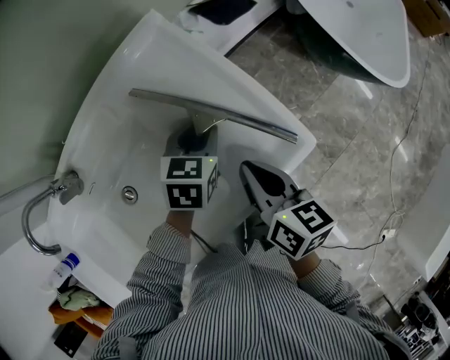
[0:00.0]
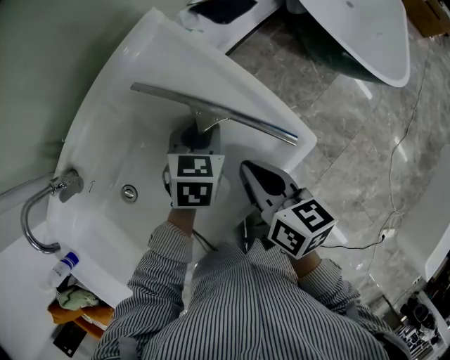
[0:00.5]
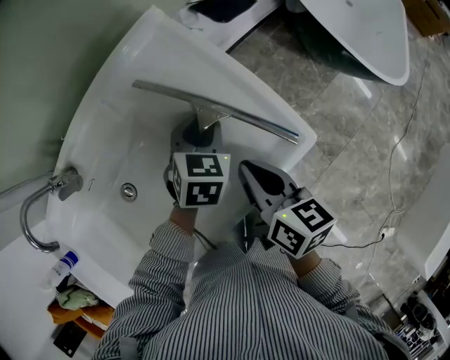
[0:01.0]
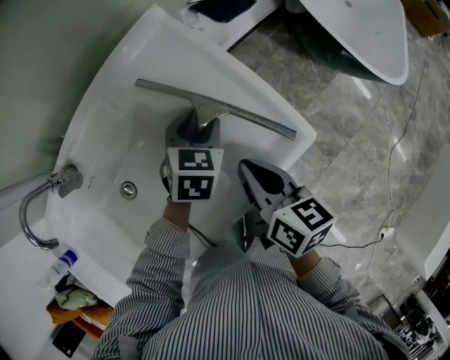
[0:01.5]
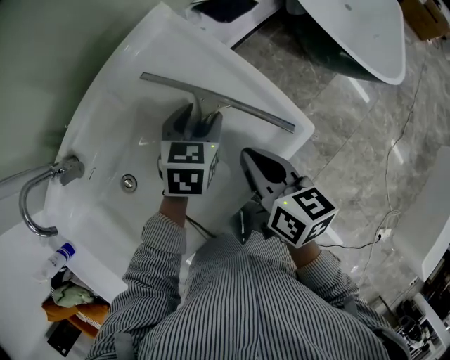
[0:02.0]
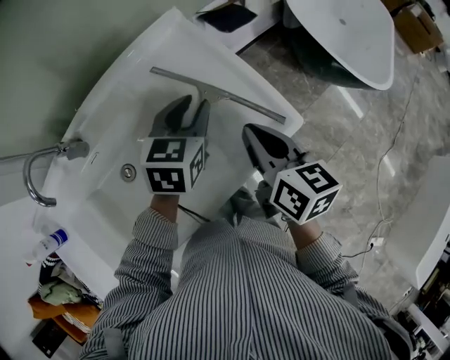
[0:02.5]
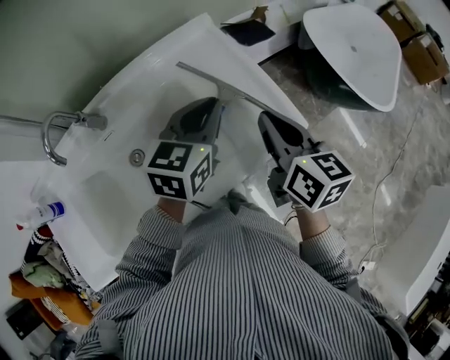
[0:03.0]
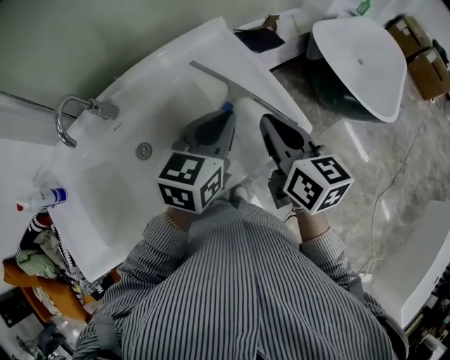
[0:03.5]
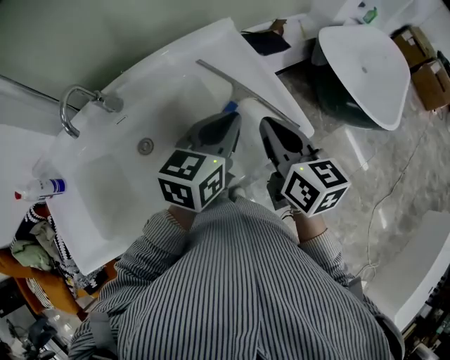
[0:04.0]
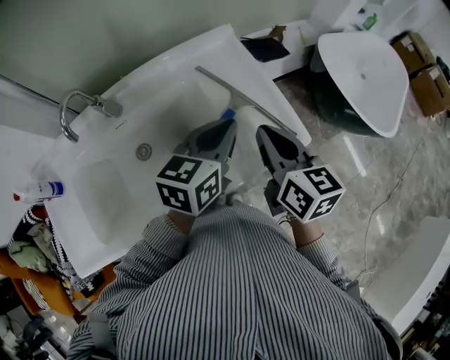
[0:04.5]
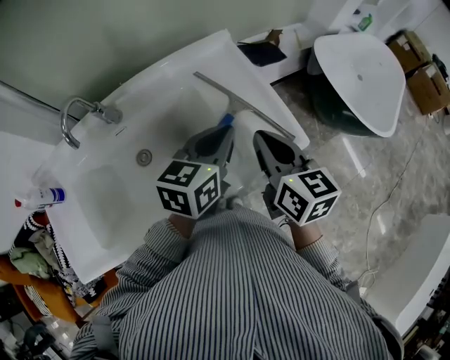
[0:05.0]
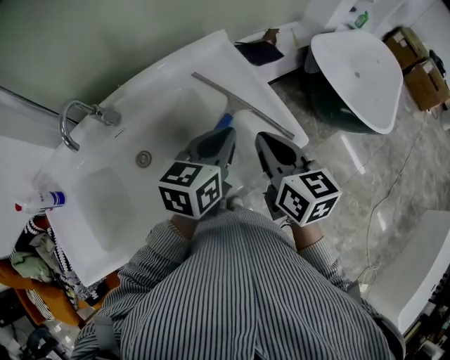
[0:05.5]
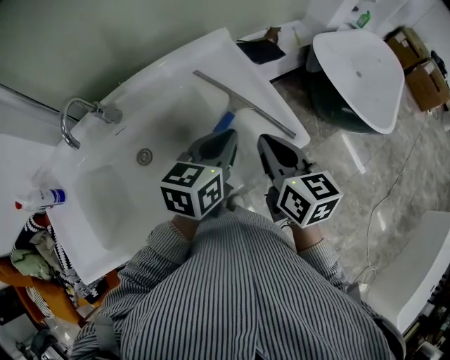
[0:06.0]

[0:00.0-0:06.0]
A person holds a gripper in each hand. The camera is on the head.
0:00.0 to 0:02.0: The left gripper opens.
0:02.0 to 0:04.0: The left gripper moves upward and backward, some 20 cm, turns by roughly 30 degrees, and closes its fingers, while the right gripper travels upward by some 10 cm, and turns by roughly 20 degrees.
0:04.0 to 0:06.0: The grippers make only small movements.

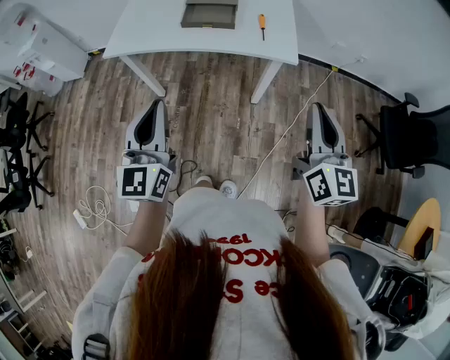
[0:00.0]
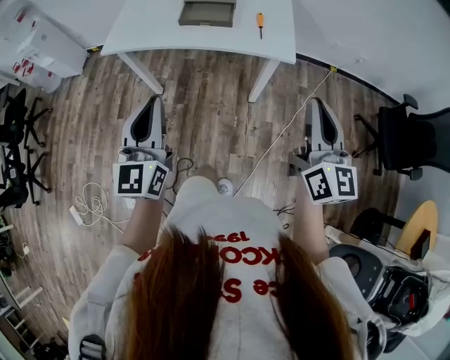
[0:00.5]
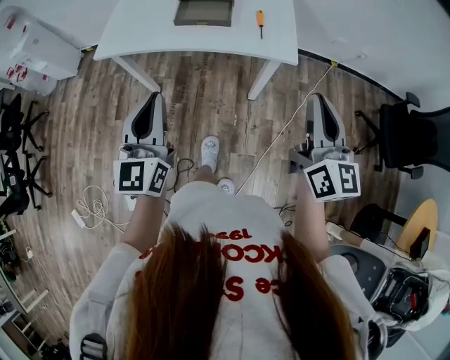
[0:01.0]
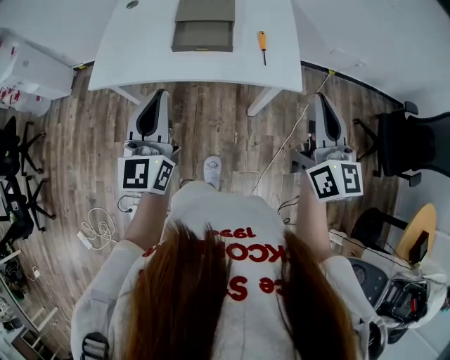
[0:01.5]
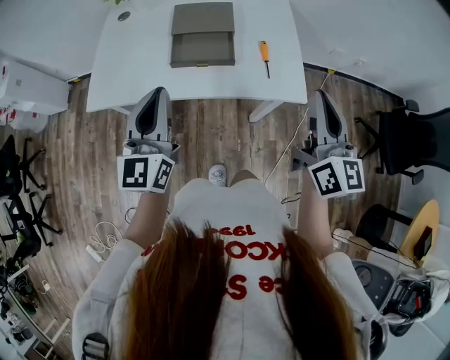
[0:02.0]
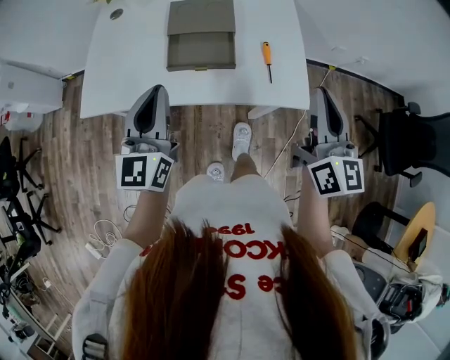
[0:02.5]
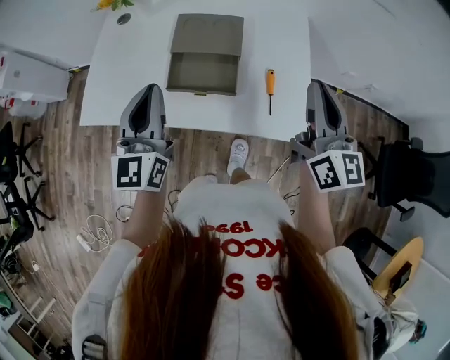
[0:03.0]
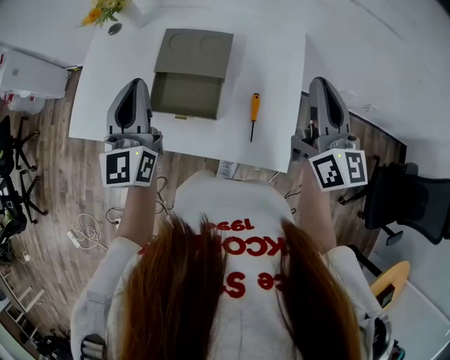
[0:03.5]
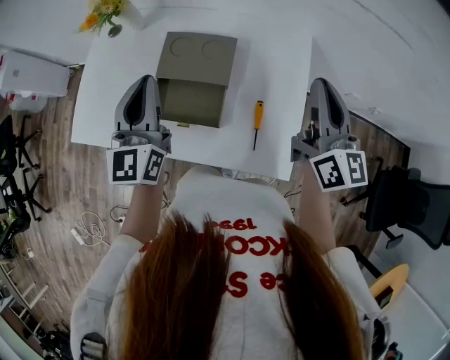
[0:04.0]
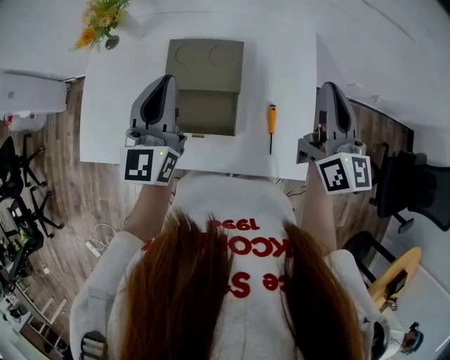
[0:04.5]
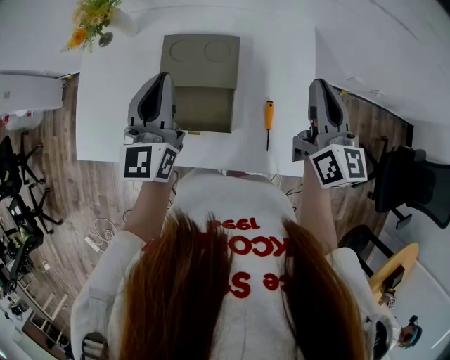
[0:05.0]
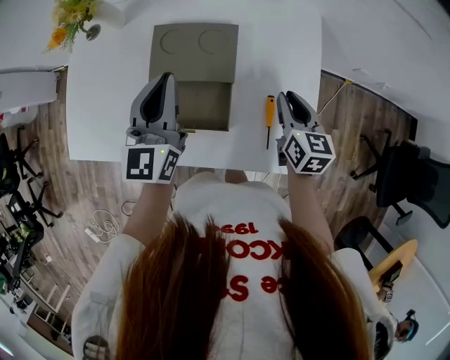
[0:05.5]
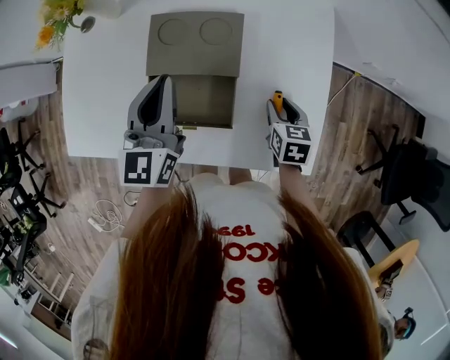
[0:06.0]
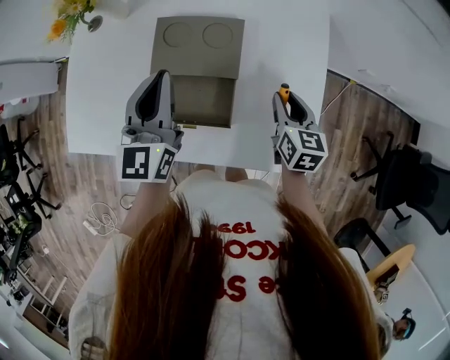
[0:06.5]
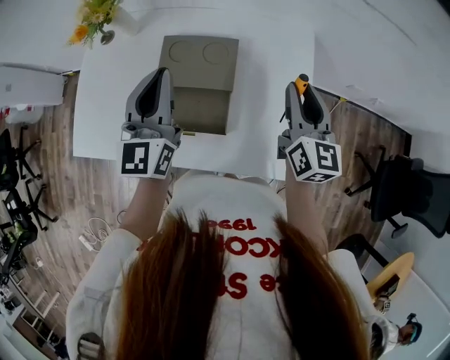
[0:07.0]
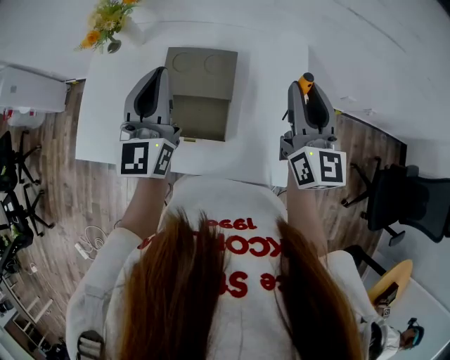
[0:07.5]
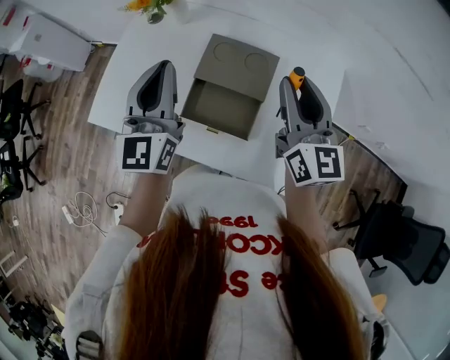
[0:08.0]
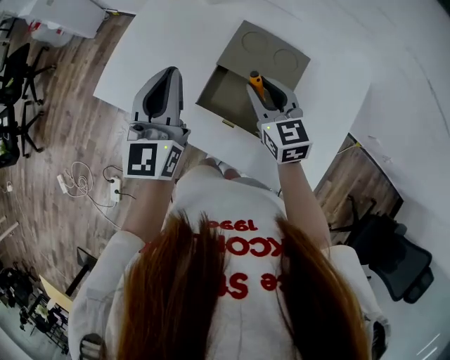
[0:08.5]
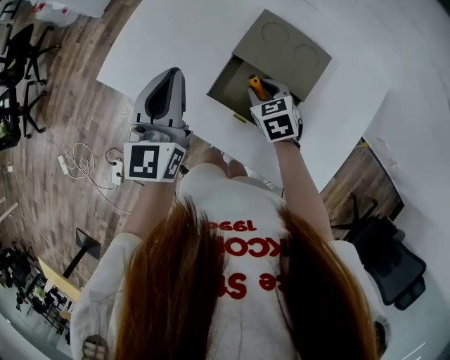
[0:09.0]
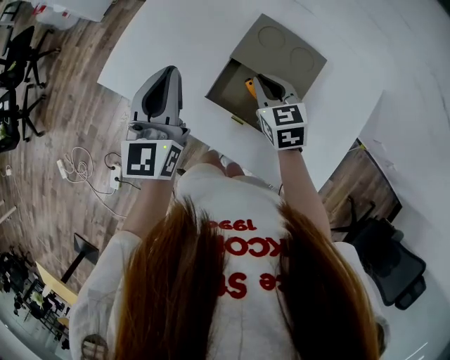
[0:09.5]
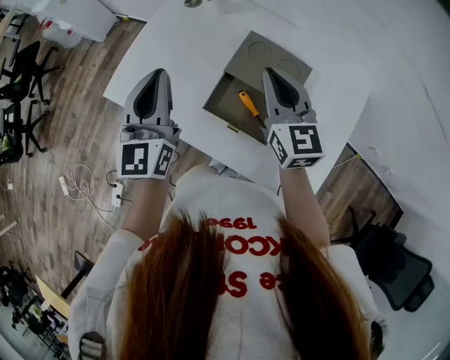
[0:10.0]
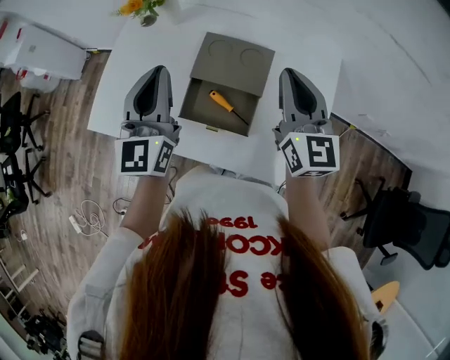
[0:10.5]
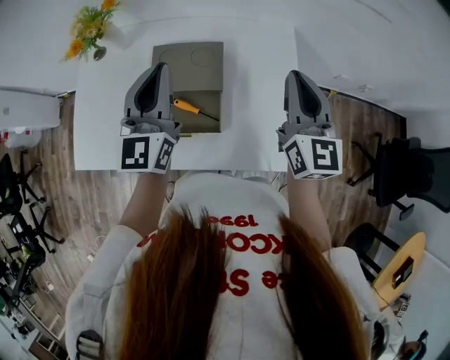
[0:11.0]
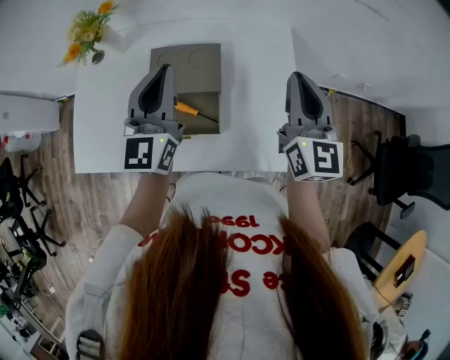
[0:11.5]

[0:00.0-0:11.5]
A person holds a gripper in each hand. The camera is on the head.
0:00.0 to 0:02.0: Both grippers travel together forward, about 25 cm.
0:02.0 to 0:04.0: Both grippers travel together forward, approximately 25 cm.
0:04.0 to 0:06.0: The left gripper is displaced downward by roughly 10 cm. The right gripper shifts about 30 cm downward, points its fingers about 50 degrees further downward, and opens its fingers.
0:06.0 to 0:07.5: The right gripper is displaced upward by about 30 cm, and tips its fingers upward by about 50 degrees. Meanwhile the left gripper travels upward by roughly 10 cm.
0:07.5 to 0:09.5: The left gripper shifts by roughly 15 cm, and turns by about 30 degrees. Meanwhile the right gripper changes place by about 35 cm, tilts its fingers about 40 degrees downward, and closes.
0:09.5 to 0:11.5: The right gripper shifts by approximately 35 cm, and tips its fingers upward by roughly 30 degrees; the left gripper moves some 20 cm, and changes its angle by roughly 30 degrees.

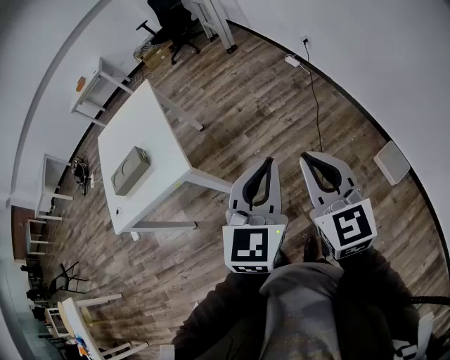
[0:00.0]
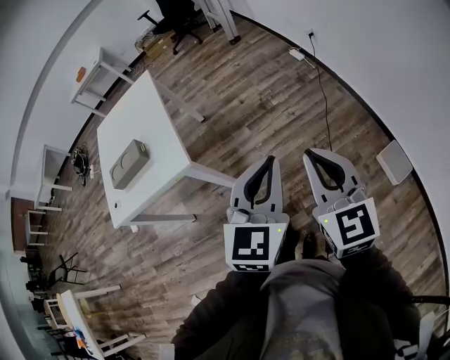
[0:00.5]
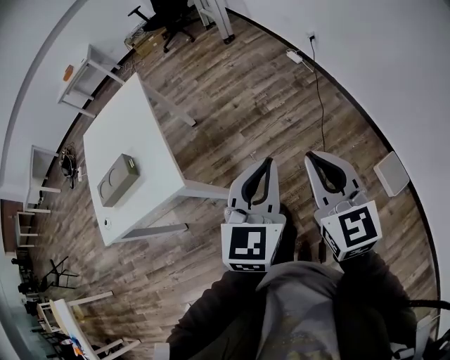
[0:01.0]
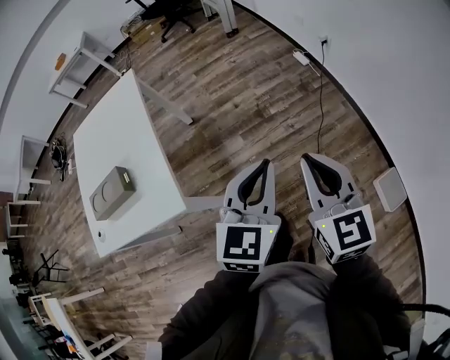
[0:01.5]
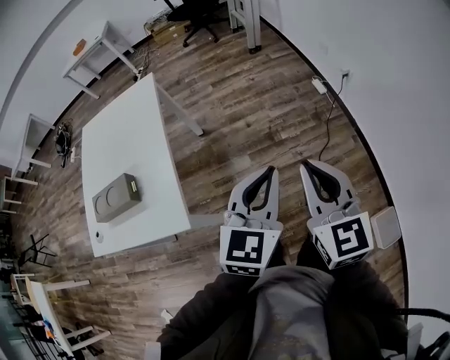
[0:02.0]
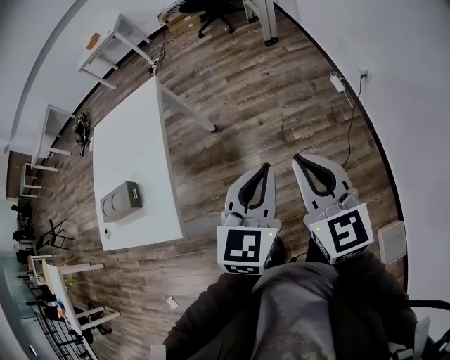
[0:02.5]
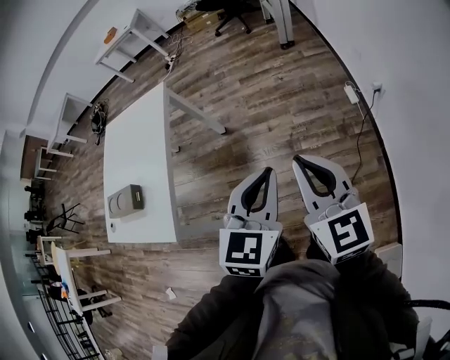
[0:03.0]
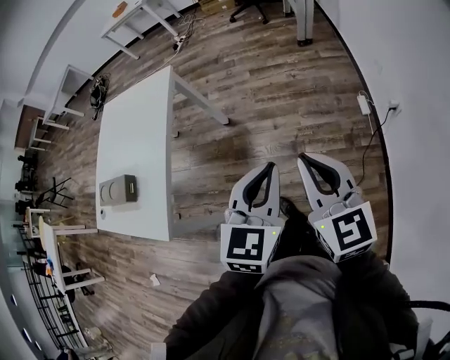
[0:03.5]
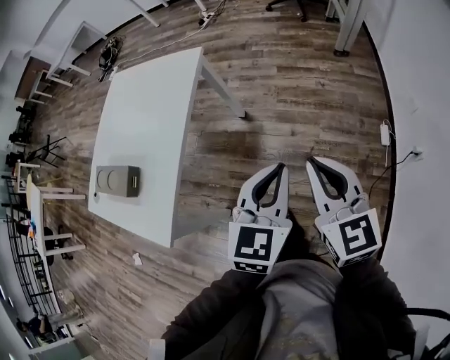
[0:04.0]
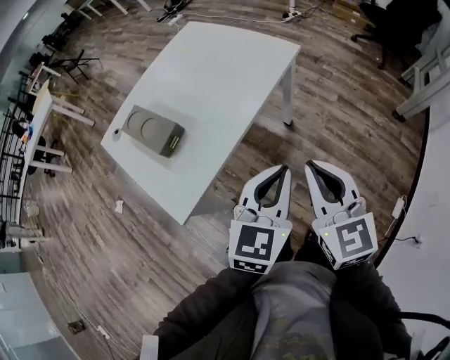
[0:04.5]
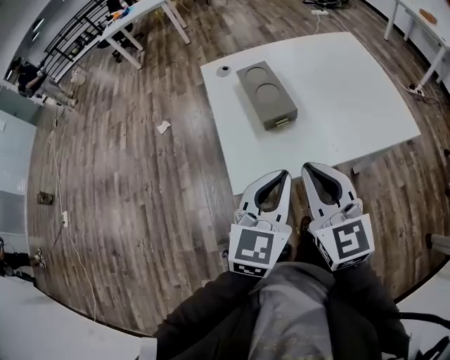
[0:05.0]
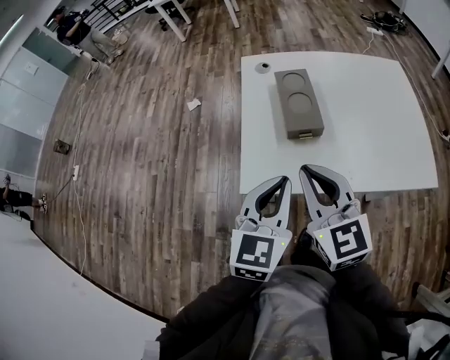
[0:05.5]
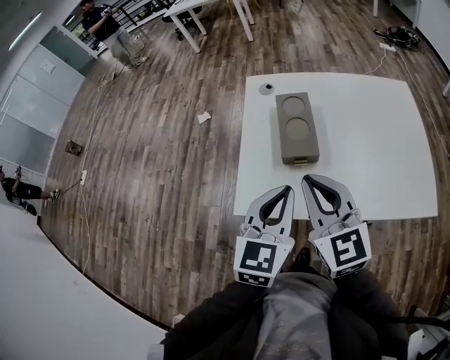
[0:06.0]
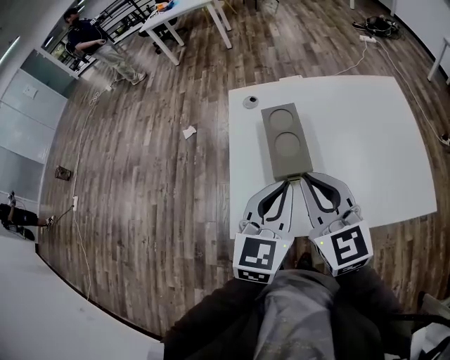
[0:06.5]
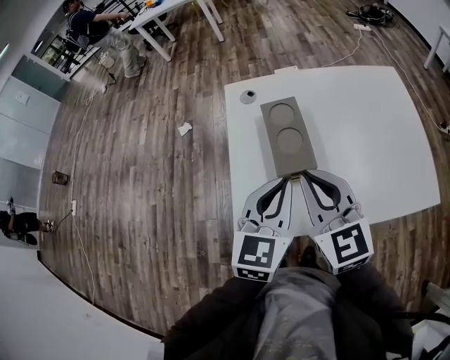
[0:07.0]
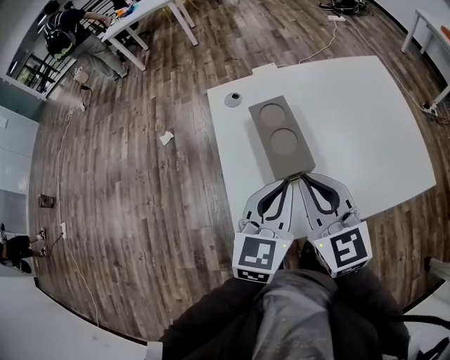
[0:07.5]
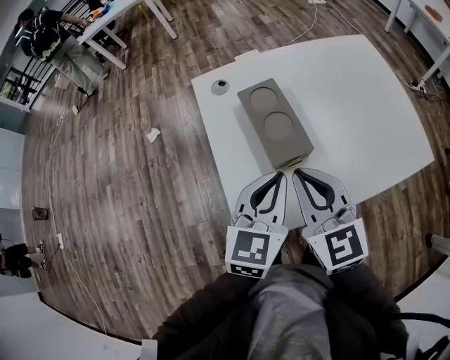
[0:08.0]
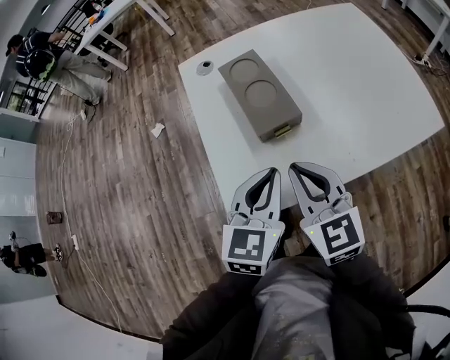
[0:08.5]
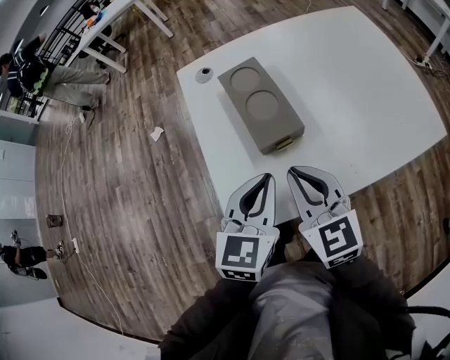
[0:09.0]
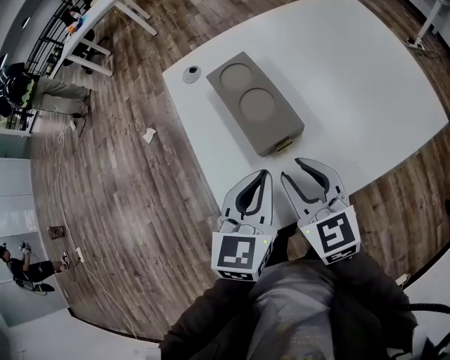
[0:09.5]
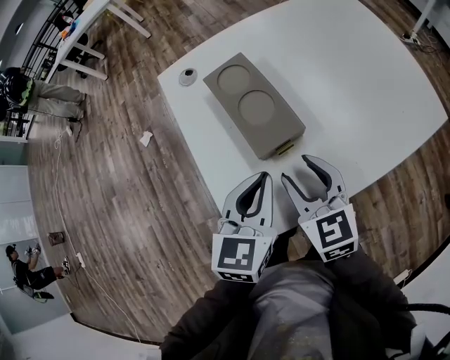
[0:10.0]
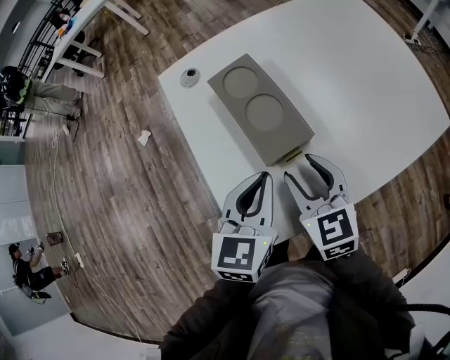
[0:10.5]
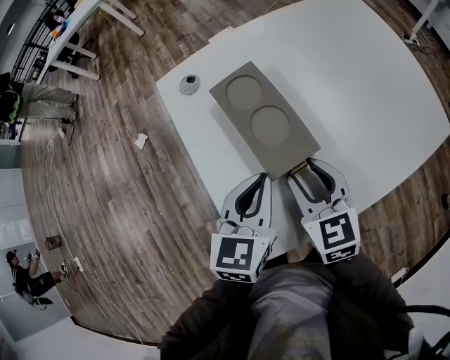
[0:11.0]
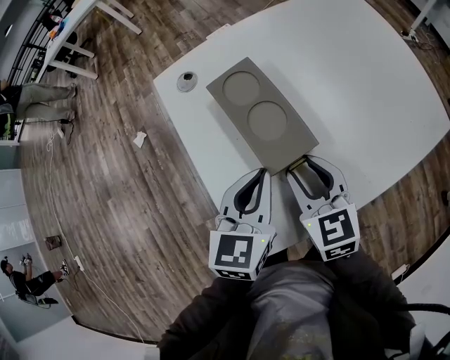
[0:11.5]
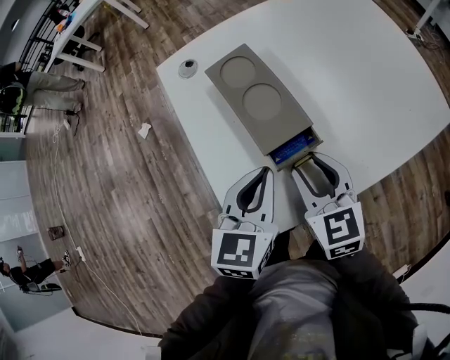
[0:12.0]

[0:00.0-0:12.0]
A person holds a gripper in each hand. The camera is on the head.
0:00.0 to 0:02.0: Both grippers travel together forward, some 30 cm.
0:02.0 to 0:04.0: The right gripper shifts by about 30 cm, and changes its angle by approximately 30 degrees. The left gripper moves some 30 cm, and changes its angle by roughly 30 degrees.
0:04.0 to 0:06.0: The two grippers travel together, roughly 50 cm. The right gripper turns by approximately 80 degrees, while the left gripper rotates approximately 80 degrees.
0:06.0 to 0:08.0: Both grippers move forward, about 5 cm. The left gripper rotates some 20 degrees.
0:08.0 to 0:10.0: The right gripper goes approximately 15 cm downward, and opens its fingers; the left gripper heads downward, covering about 10 cm.
0:10.0 to 0:12.0: The grippers move only a little.
